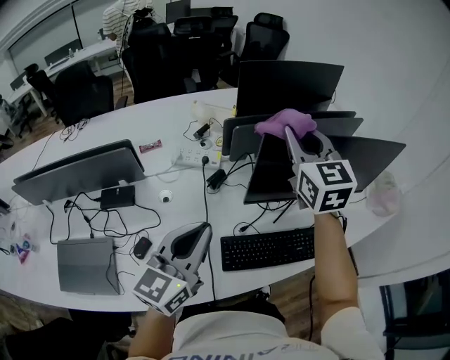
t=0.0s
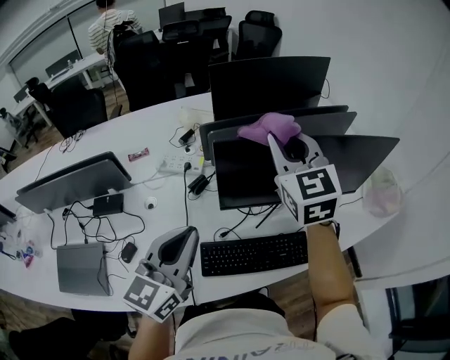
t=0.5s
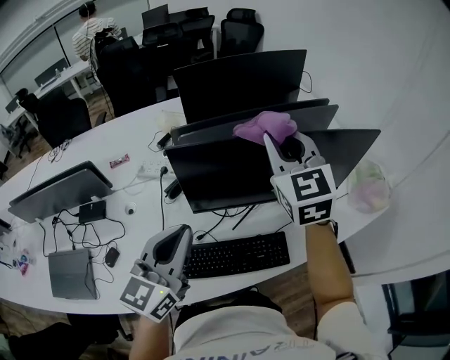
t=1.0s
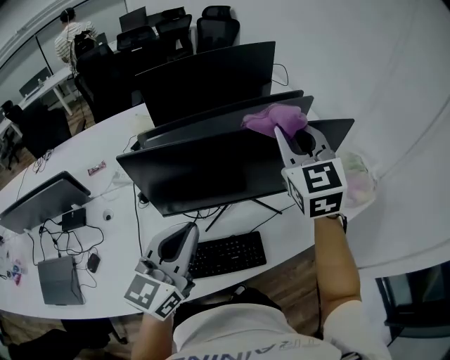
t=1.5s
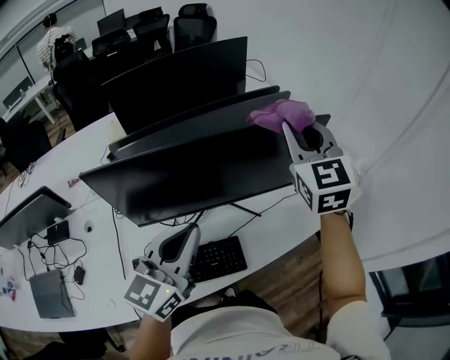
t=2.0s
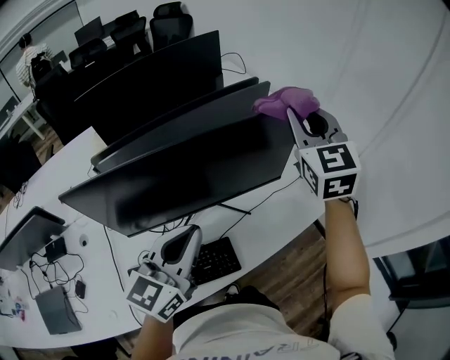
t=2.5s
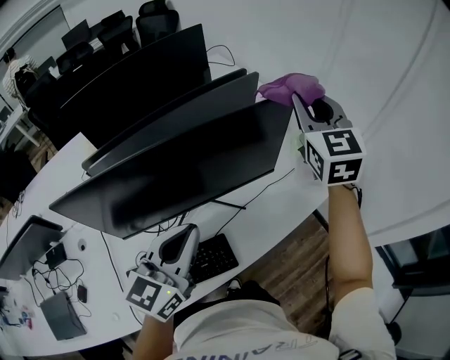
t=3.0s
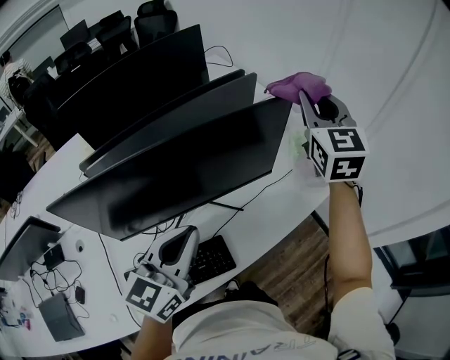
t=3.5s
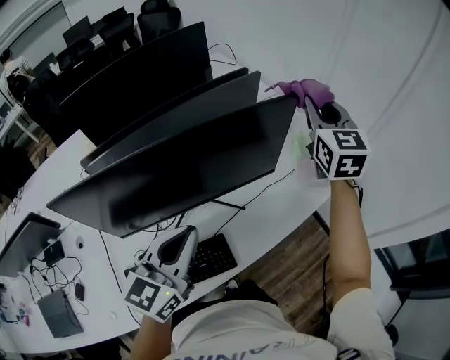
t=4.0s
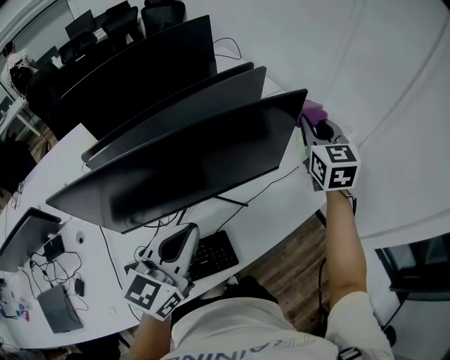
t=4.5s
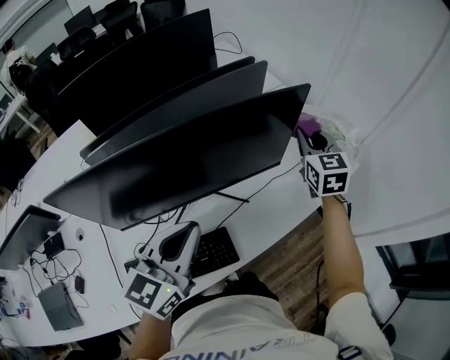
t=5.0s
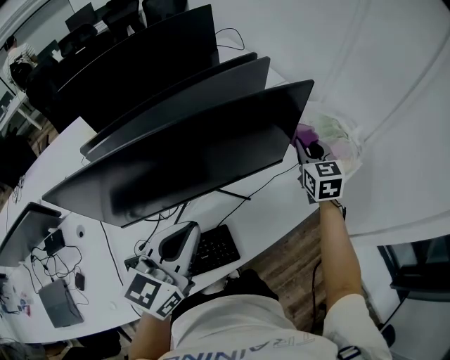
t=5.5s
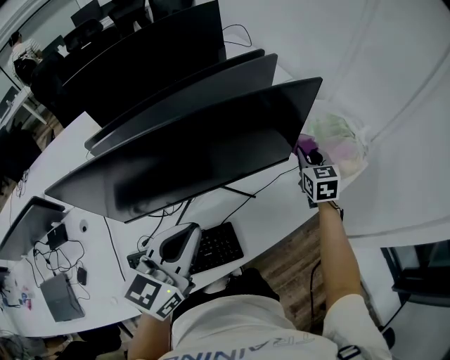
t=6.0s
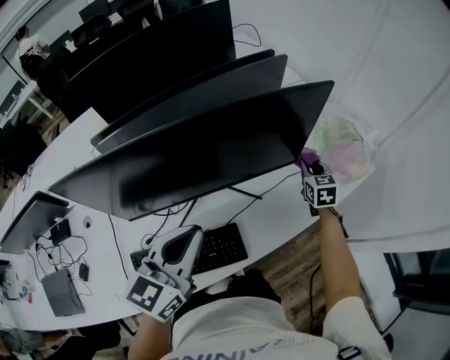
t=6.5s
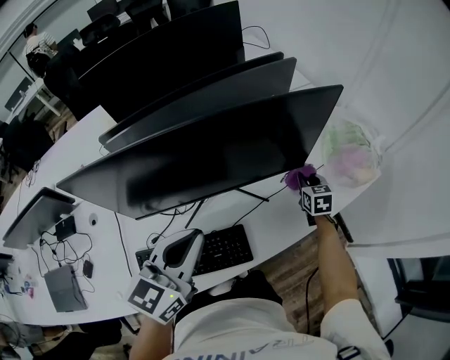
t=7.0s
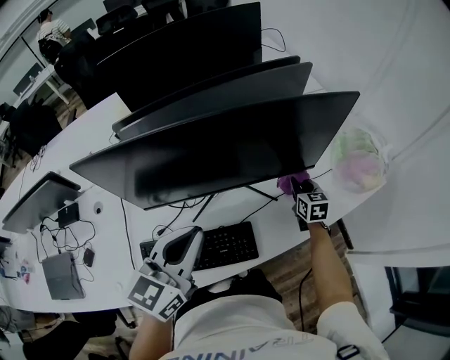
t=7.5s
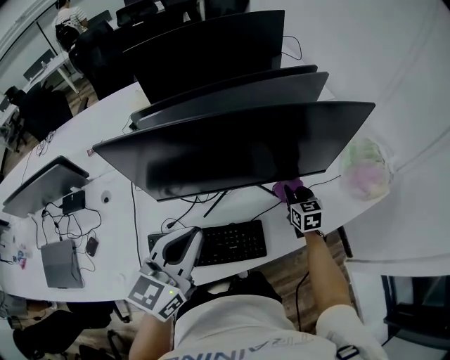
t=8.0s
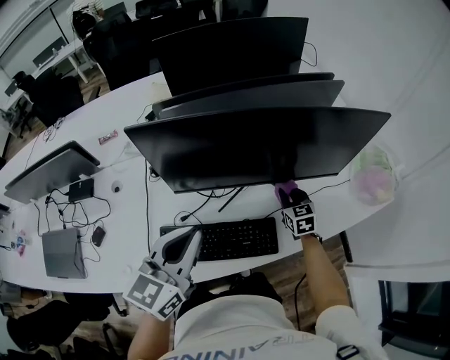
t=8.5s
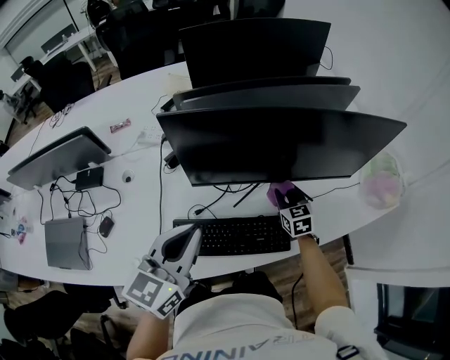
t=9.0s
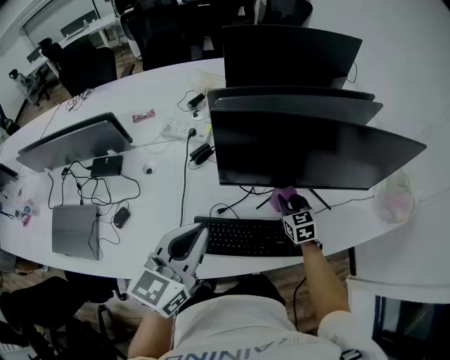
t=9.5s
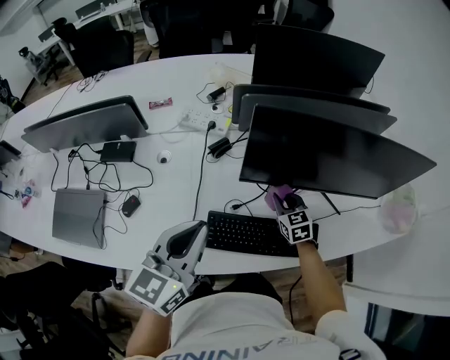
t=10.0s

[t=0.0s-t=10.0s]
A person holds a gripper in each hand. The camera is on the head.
t=0.0s to t=2.0s: Both grippers travel together to the right, roughly 35 cm.
t=2.0s to t=4.0s: The left gripper is displaced to the right by about 5 cm. The right gripper is displaced to the right and forward by about 20 cm.
t=4.0s to t=6.0s: The right gripper heads downward, covering about 25 cm, and rotates approximately 20 degrees.
t=6.0s to t=8.0s: The right gripper heads to the left, downward and backward, covering about 20 cm. The left gripper heads to the left and backward, covering roughly 10 cm.
t=8.0s to t=10.0s: The grippers both shift to the left by some 25 cm. The right gripper turns by approximately 20 degrees.

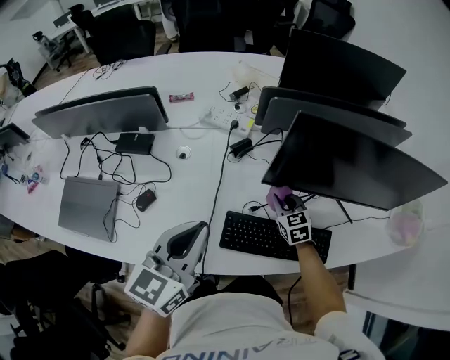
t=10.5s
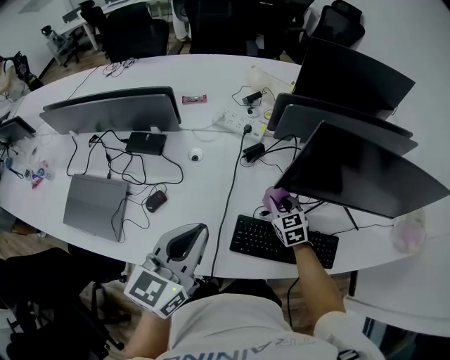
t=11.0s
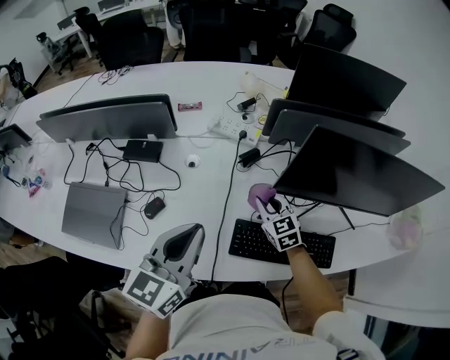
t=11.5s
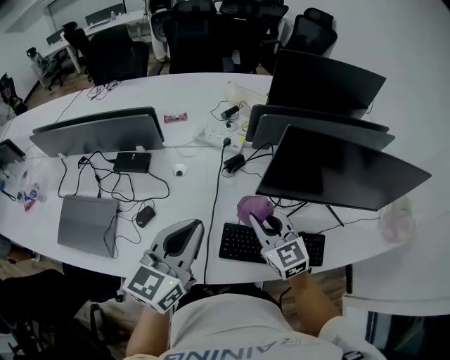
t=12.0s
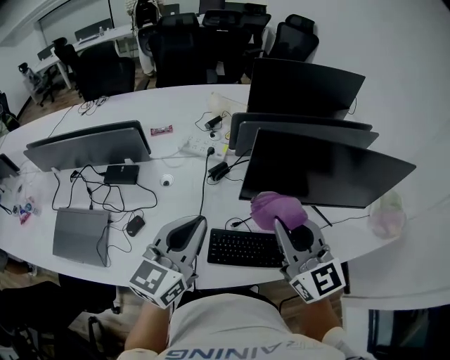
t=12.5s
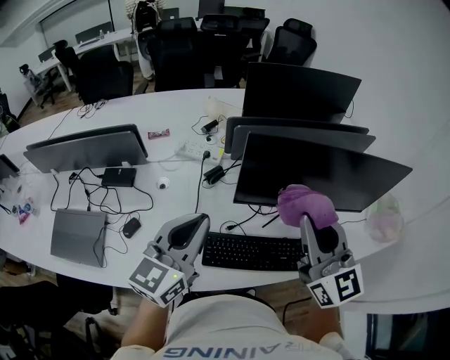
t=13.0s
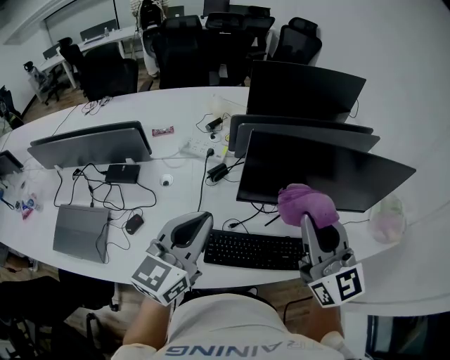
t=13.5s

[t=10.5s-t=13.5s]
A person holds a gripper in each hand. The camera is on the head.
t=10.5s to t=12.0s: The right gripper goes some 20 cm upward, to the left and backward, and turns by some 20 degrees.
t=12.0s to t=13.5s: The left gripper travels to the right by approximately 10 cm; the right gripper travels upward and to the right by roughly 25 cm, and rotates roughly 30 degrees.

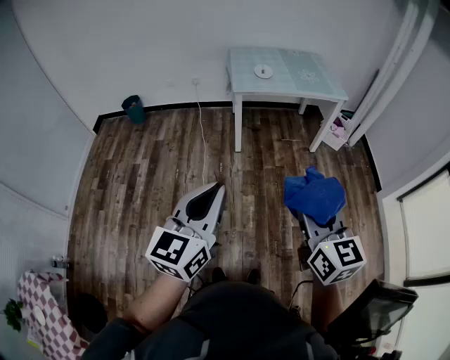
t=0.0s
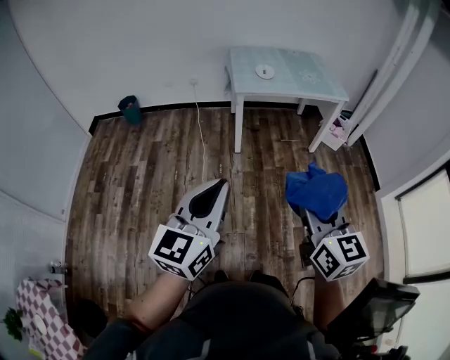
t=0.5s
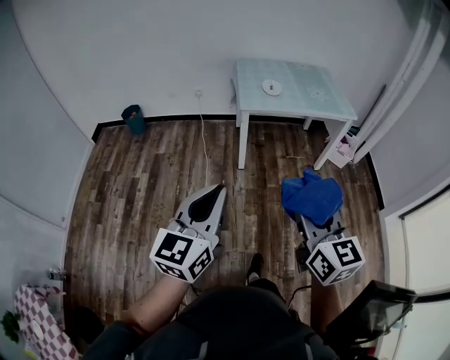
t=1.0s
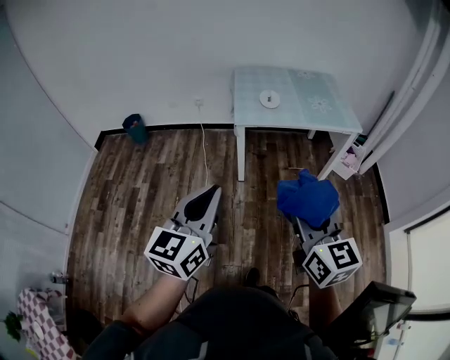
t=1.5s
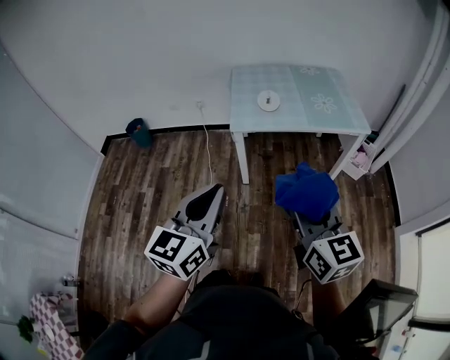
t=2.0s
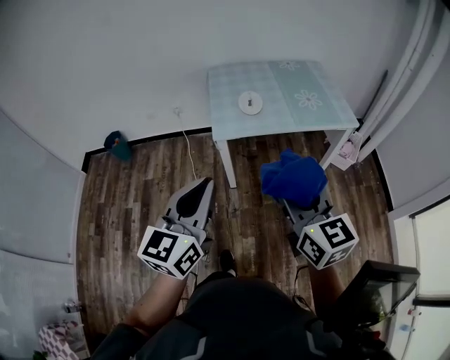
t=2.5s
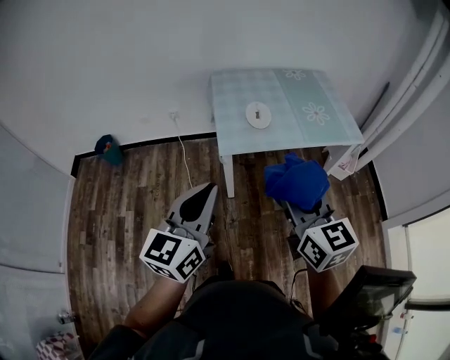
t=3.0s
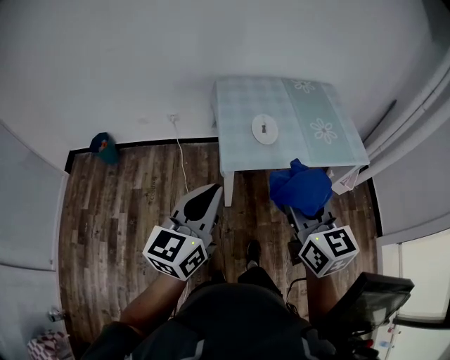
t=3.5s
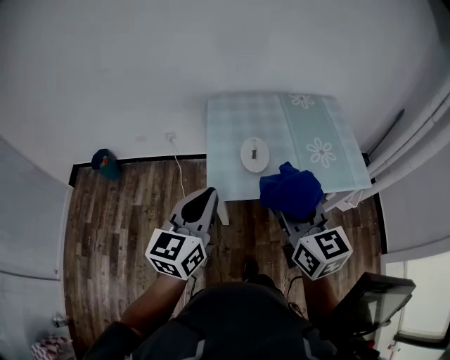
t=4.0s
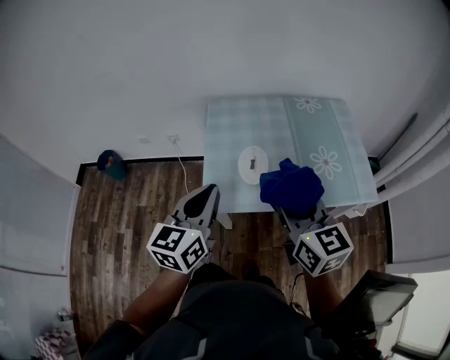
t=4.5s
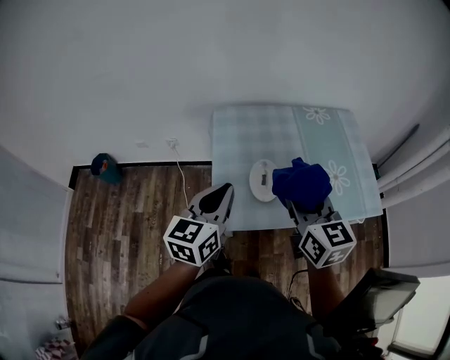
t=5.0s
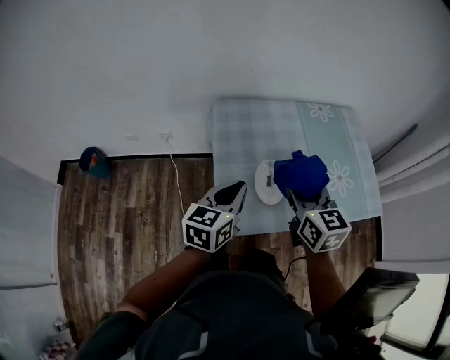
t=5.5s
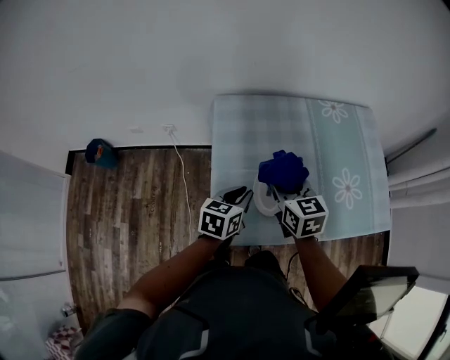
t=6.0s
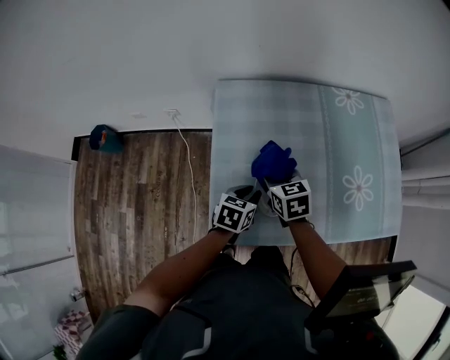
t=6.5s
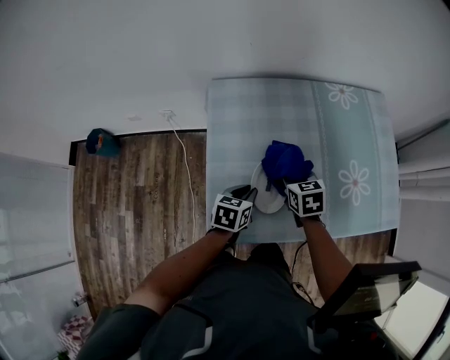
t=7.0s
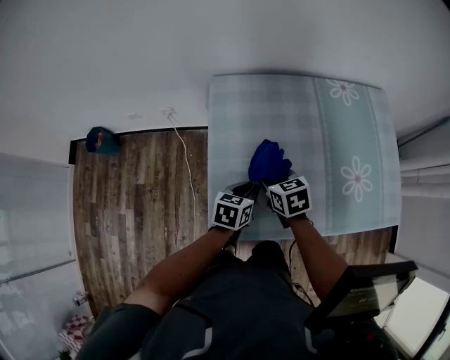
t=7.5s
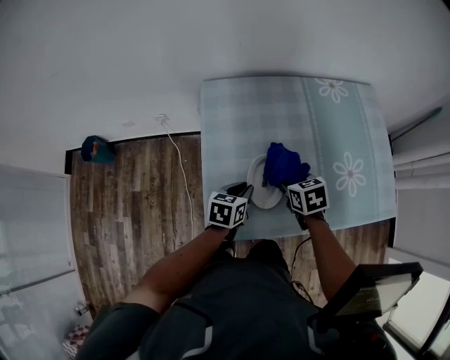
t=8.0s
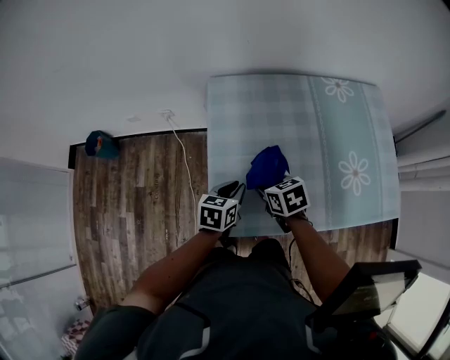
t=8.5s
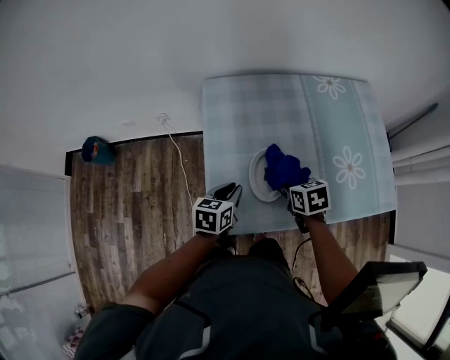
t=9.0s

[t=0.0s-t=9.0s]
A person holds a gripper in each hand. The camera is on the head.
t=0.0s to t=2.0s: The two grippers go some 30 cm forward.
t=2.0s to t=4.5s: Both grippers are carried forward, approximately 40 cm.
t=4.5s to t=7.0s: The two grippers go roughly 40 cm downward and forward. The right gripper tilts its fingers some 40 degrees downward, while the left gripper points its fingers about 40 degrees further downward.
t=7.0s to t=9.0s: The left gripper ends up some 5 cm from where it was; the right gripper moves left and right over roughly 10 cm, changing direction 3 times.

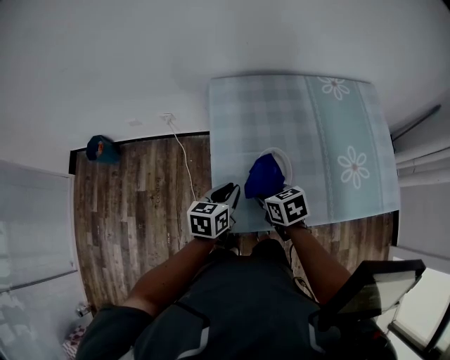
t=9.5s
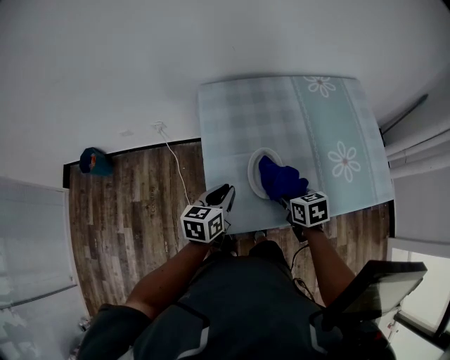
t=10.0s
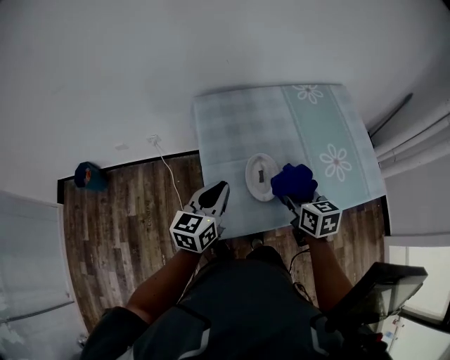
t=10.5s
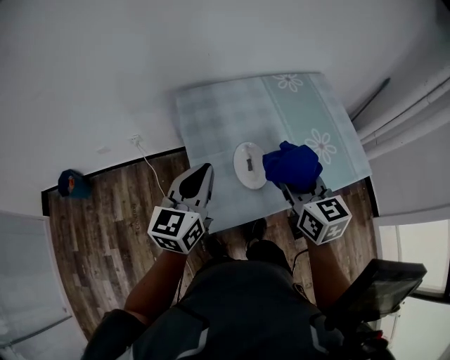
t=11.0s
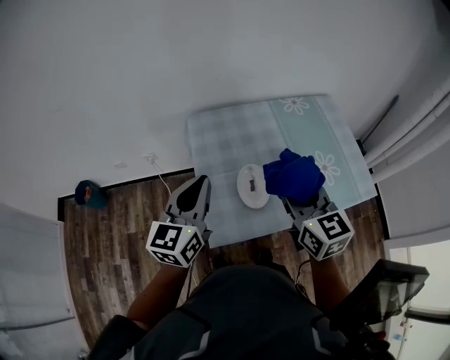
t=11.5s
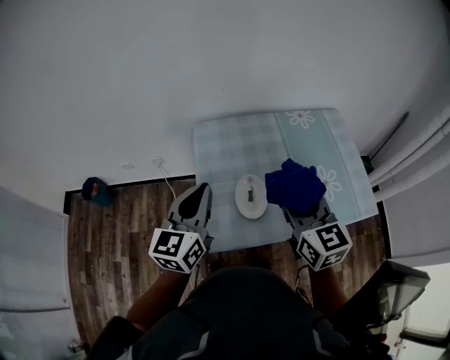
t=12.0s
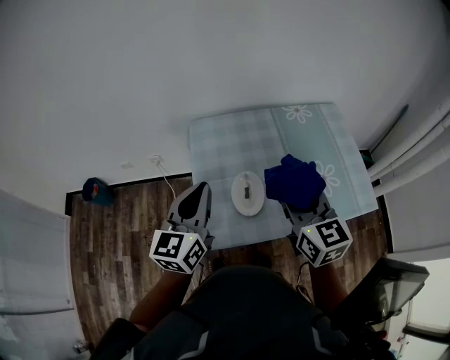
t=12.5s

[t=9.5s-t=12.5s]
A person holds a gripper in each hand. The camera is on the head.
t=9.5s to t=11.0s: The right gripper travels upward and to the right by some 20 cm, and turns by about 40 degrees, while the left gripper shifts roughly 20 cm upward, and turns by roughly 30 degrees.
t=11.0s to t=12.5s: The two grippers go some 5 cm upward.

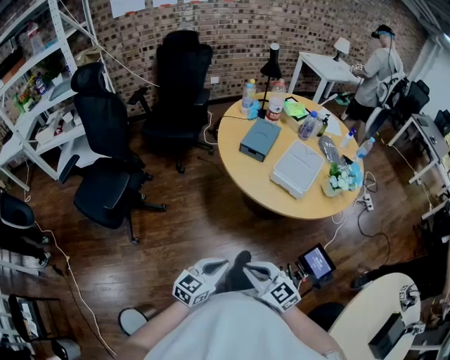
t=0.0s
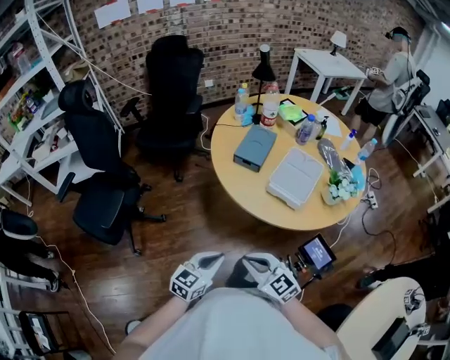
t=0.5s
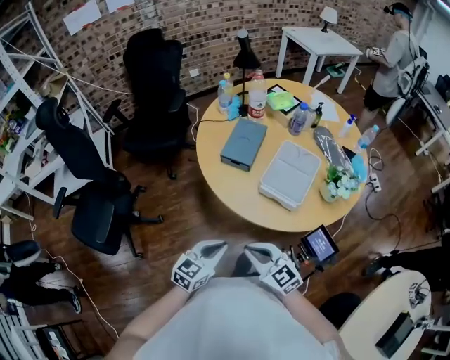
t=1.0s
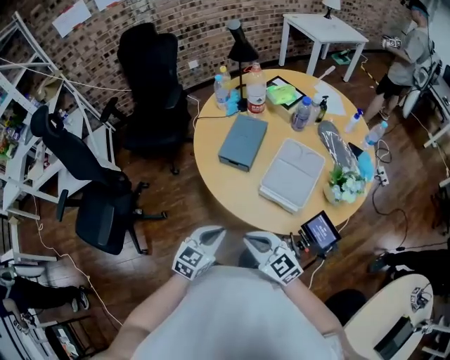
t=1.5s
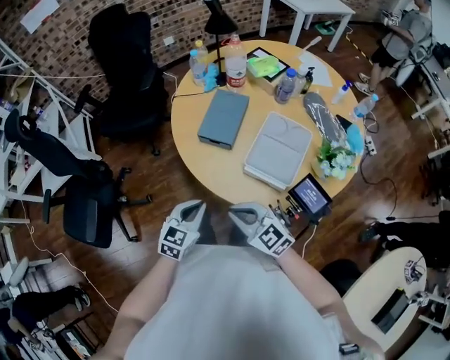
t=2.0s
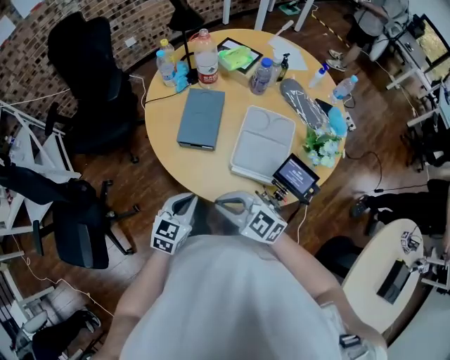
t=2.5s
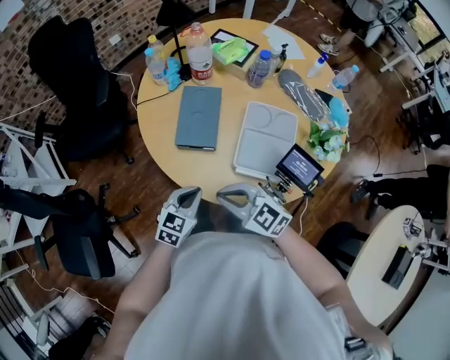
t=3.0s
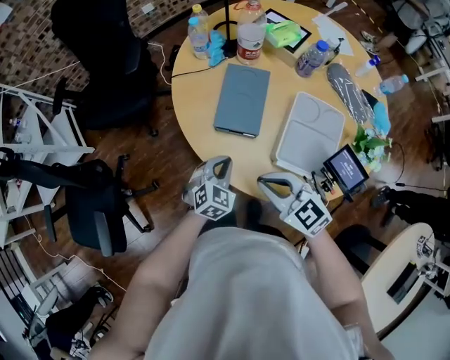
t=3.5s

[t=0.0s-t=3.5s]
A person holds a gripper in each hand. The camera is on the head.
t=0.0s to t=2.0s: Both grippers move forward, roughly 30 cm.
t=2.0s to t=3.5s: The right gripper heads forward, covering roughly 10 cm; the left gripper travels forward and downward by about 20 cm, and swivels roughly 20 degrees.
